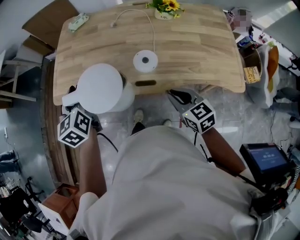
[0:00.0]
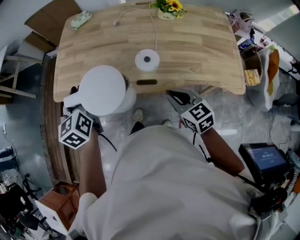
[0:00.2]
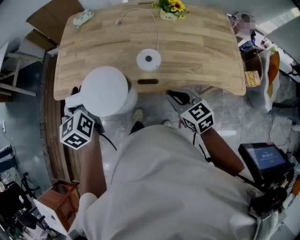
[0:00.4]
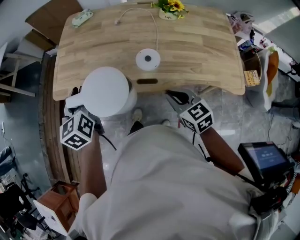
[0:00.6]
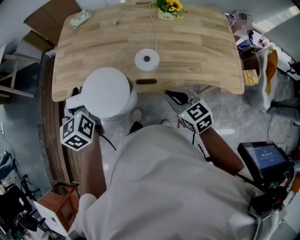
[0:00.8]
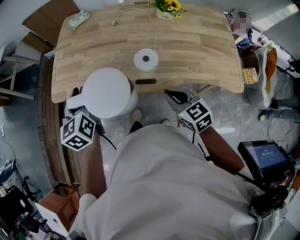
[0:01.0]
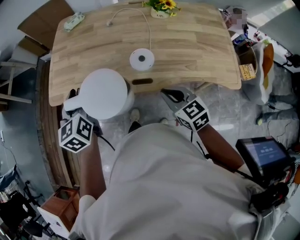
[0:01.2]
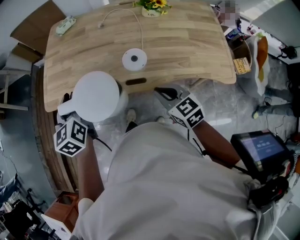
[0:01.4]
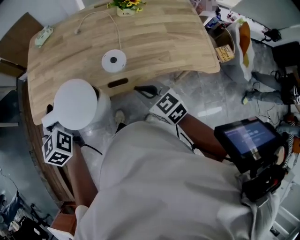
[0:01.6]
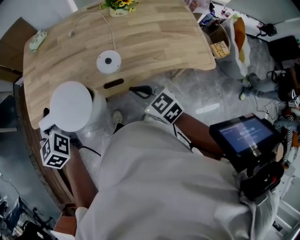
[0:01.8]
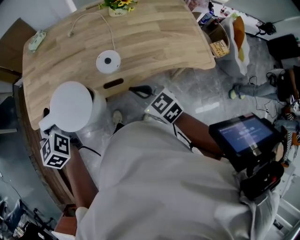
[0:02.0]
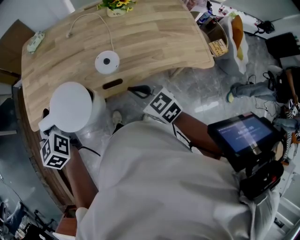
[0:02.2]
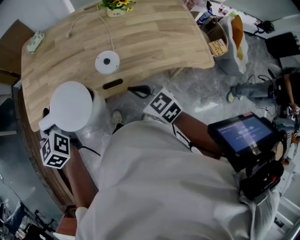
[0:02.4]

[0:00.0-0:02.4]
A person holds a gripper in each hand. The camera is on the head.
0.0 to 2.4 s: There are only small adjustments of the grippers.

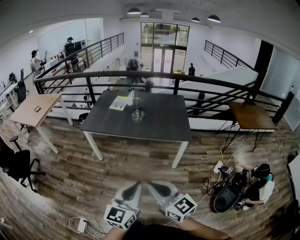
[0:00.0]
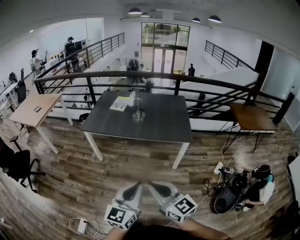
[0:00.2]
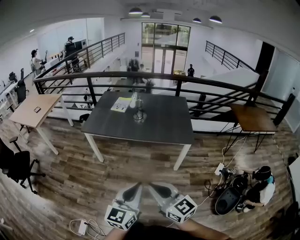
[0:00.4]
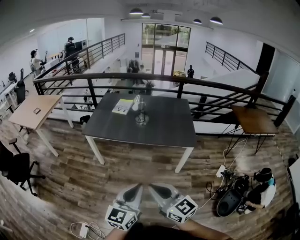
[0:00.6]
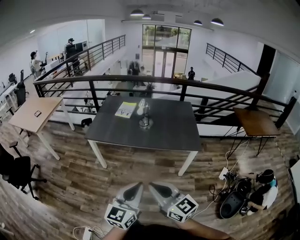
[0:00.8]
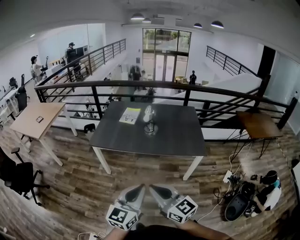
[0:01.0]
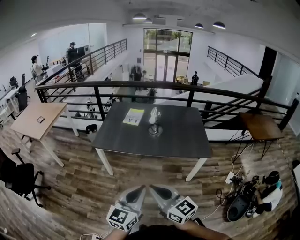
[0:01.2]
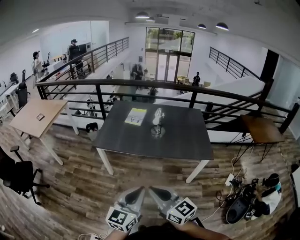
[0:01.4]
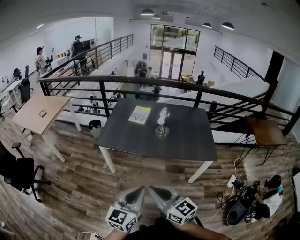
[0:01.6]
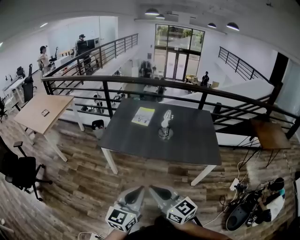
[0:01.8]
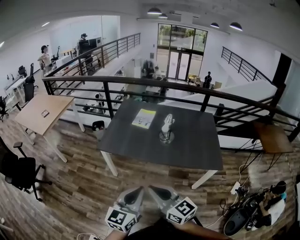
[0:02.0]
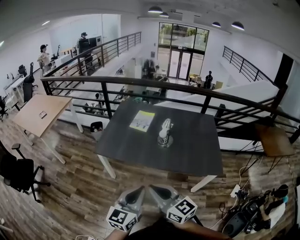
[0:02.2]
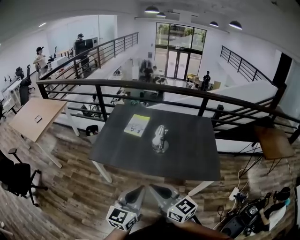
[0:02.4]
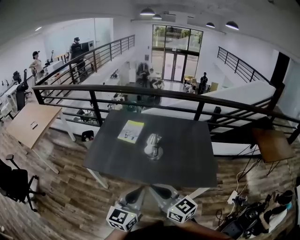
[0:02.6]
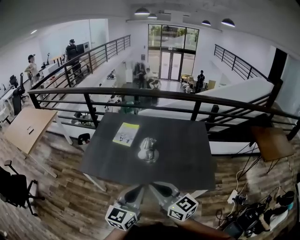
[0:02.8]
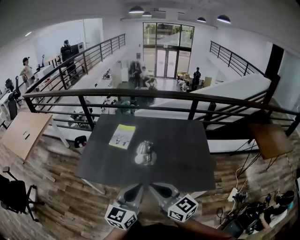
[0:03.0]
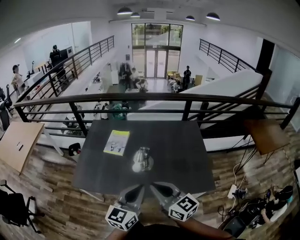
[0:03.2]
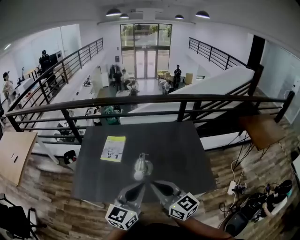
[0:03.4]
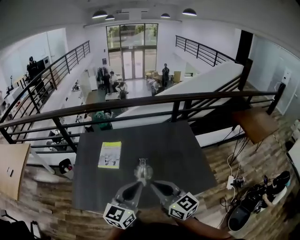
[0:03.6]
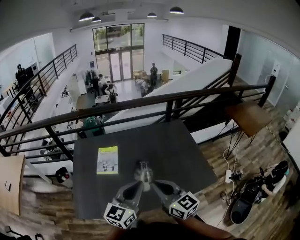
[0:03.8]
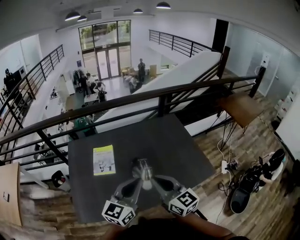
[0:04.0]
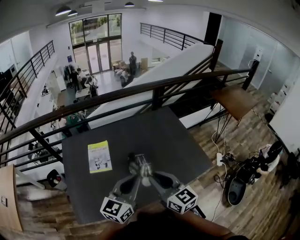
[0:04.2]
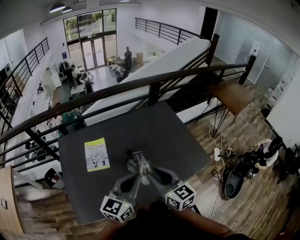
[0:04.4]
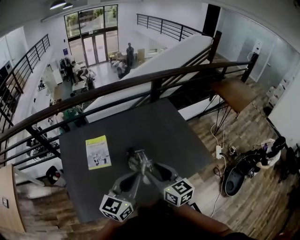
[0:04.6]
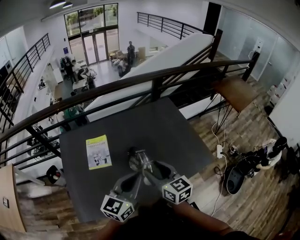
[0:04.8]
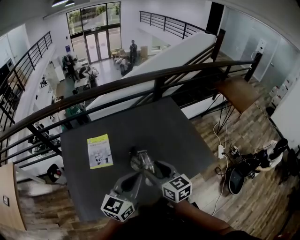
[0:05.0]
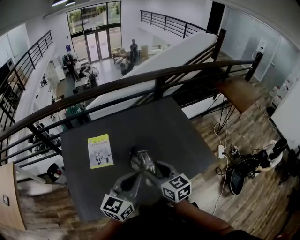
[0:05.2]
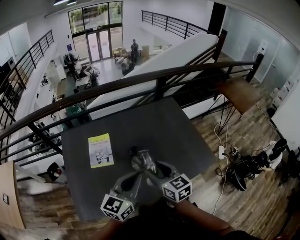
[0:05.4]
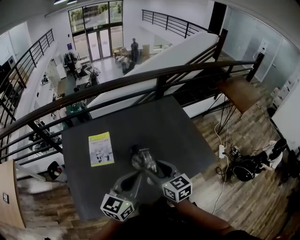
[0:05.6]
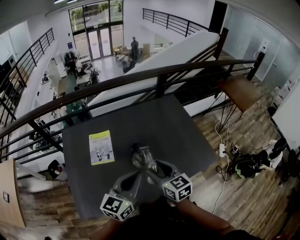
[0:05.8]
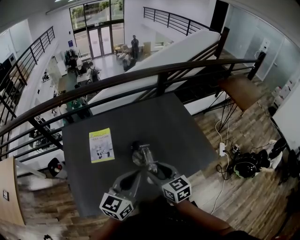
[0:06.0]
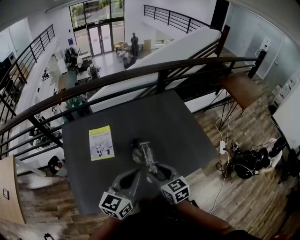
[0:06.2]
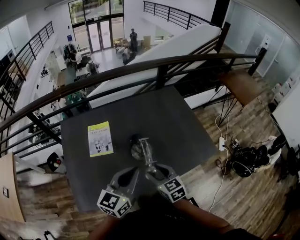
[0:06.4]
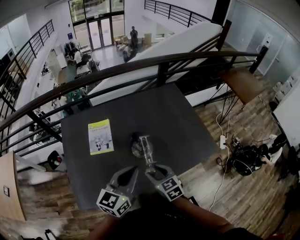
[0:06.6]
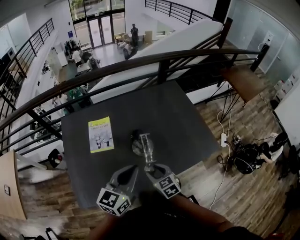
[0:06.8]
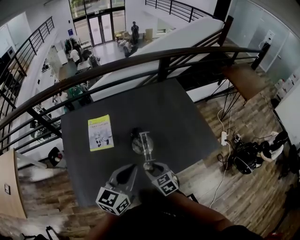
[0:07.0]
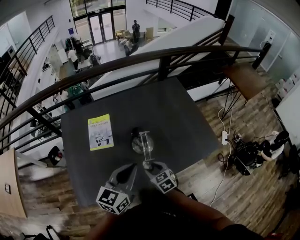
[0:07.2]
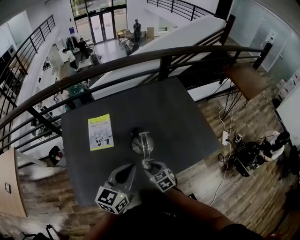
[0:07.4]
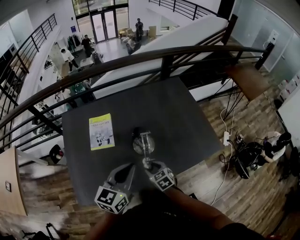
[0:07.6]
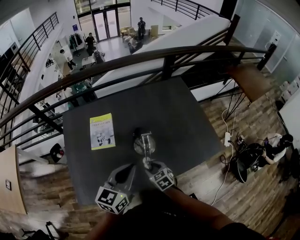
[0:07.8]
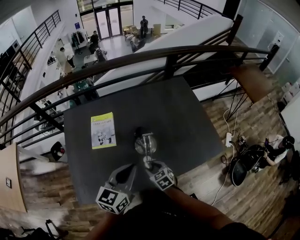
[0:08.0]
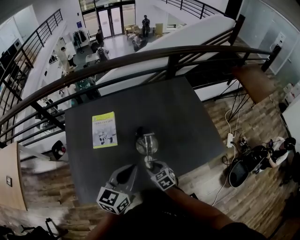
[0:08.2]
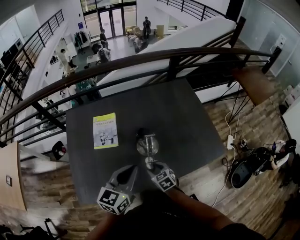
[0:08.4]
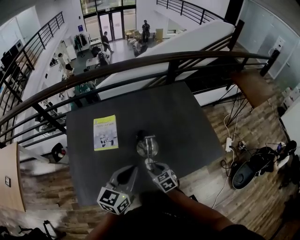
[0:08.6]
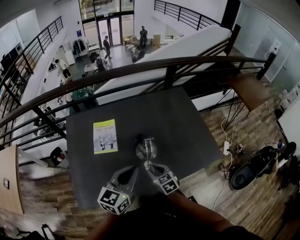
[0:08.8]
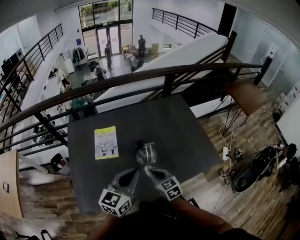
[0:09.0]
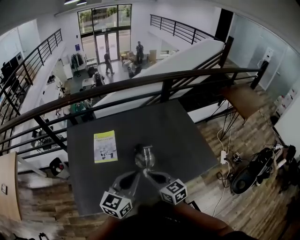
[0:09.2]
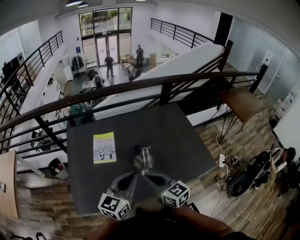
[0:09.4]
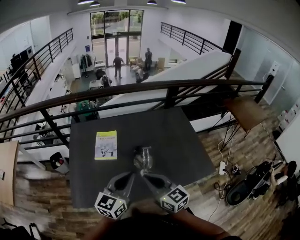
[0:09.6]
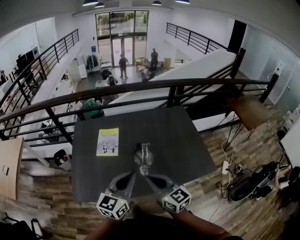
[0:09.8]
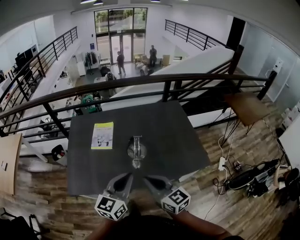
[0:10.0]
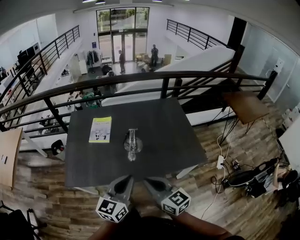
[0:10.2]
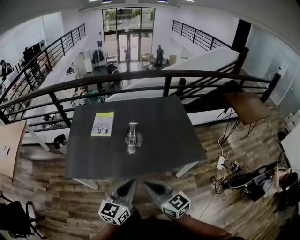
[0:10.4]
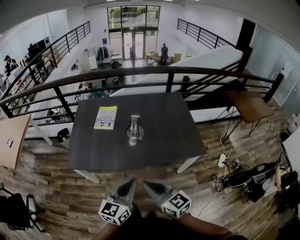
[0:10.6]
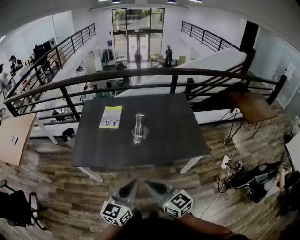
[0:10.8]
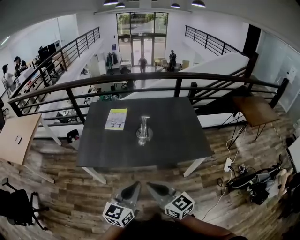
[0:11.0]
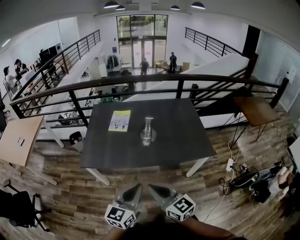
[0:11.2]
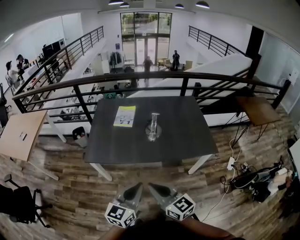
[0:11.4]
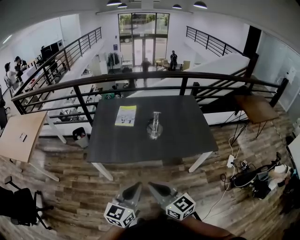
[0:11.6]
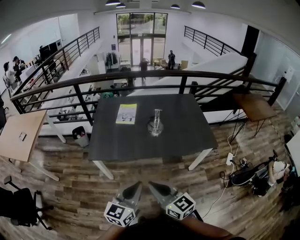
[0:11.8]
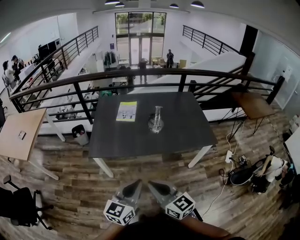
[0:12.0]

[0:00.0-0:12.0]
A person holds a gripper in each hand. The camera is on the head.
0.0 to 1.6 s: The two grippers go approximately 25 cm forward and to the left.
1.6 to 3.0 s: Both grippers move forward and to the right, approximately 35 cm.
3.0 to 4.4 s: The right gripper changes place by roughly 20 cm, swivels approximately 40 degrees, and opens. Meanwhile the left gripper changes place by some 20 cm, and swivels about 30 degrees.
4.4 to 6.0 s: The right gripper travels downward by roughly 10 cm, and opens.
6.0 to 7.6 s: The right gripper travels downward by approximately 20 cm, and changes its angle by about 20 degrees.
7.6 to 9.0 s: The right gripper shifts roughly 10 cm upward, and closes up.
9.0 to 10.4 s: The right gripper moves backward and upward, roughly 30 cm, and turns by roughly 30 degrees, while the left gripper goes about 25 cm backward and to the right.
10.4 to 12.0 s: The grippers both shift backward and to the left by some 20 cm.

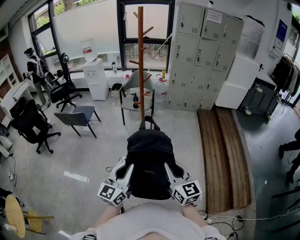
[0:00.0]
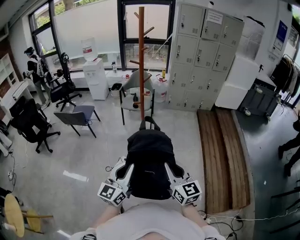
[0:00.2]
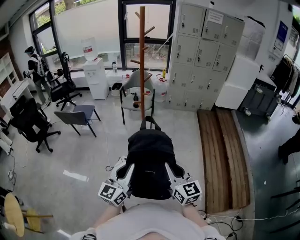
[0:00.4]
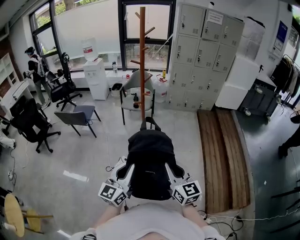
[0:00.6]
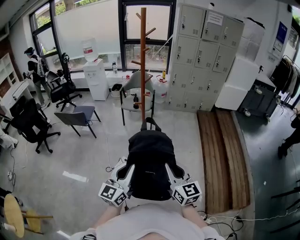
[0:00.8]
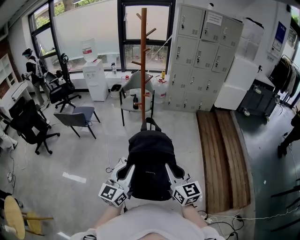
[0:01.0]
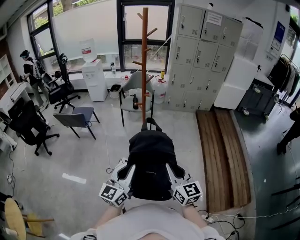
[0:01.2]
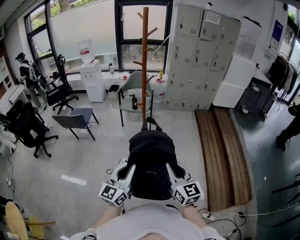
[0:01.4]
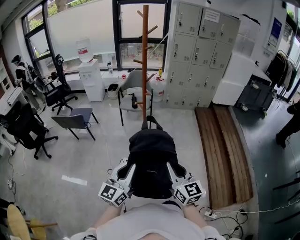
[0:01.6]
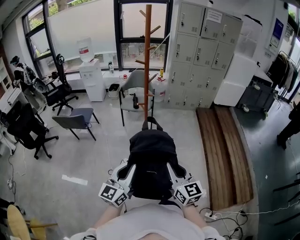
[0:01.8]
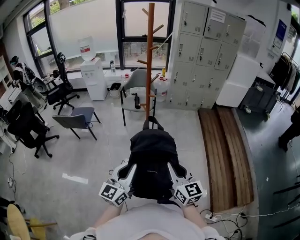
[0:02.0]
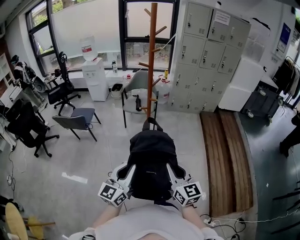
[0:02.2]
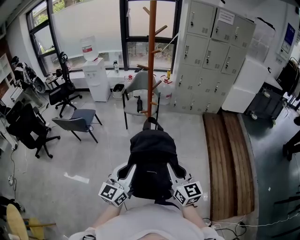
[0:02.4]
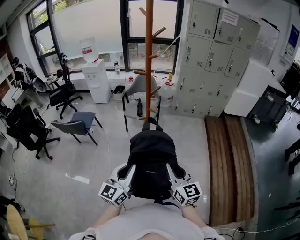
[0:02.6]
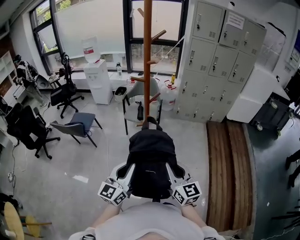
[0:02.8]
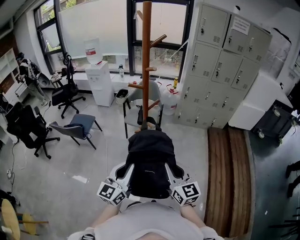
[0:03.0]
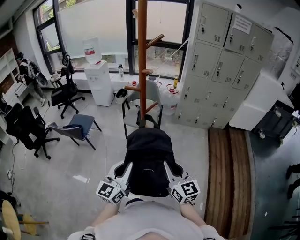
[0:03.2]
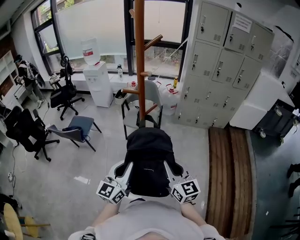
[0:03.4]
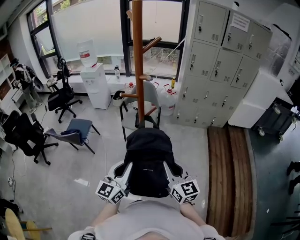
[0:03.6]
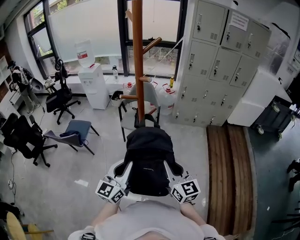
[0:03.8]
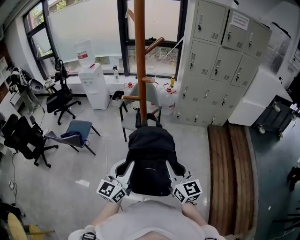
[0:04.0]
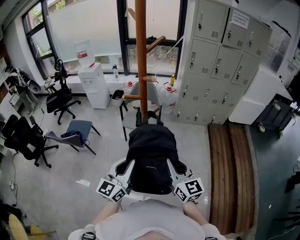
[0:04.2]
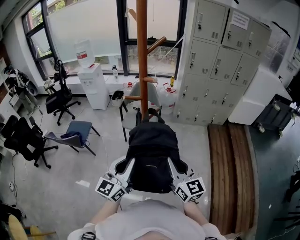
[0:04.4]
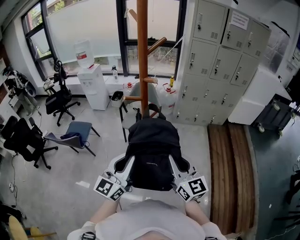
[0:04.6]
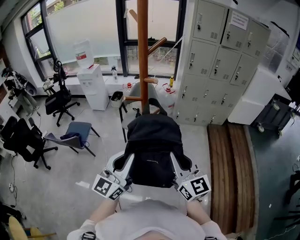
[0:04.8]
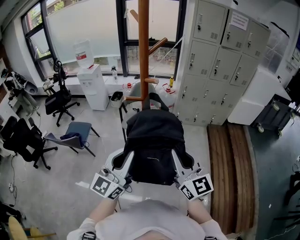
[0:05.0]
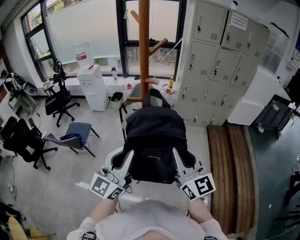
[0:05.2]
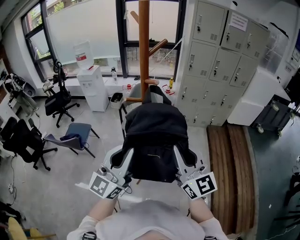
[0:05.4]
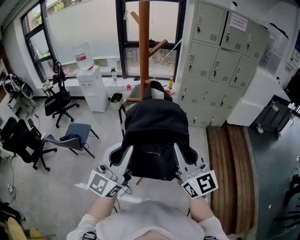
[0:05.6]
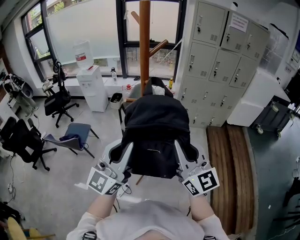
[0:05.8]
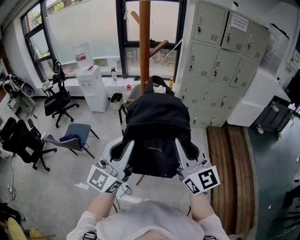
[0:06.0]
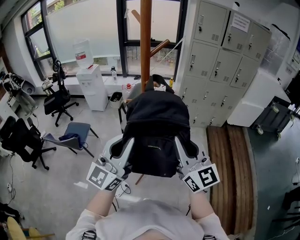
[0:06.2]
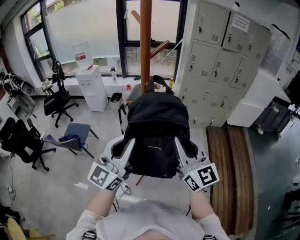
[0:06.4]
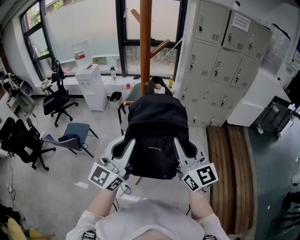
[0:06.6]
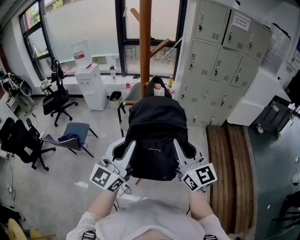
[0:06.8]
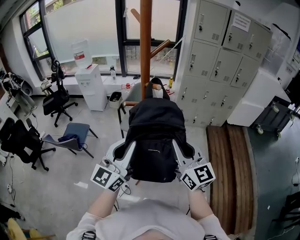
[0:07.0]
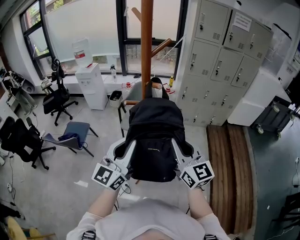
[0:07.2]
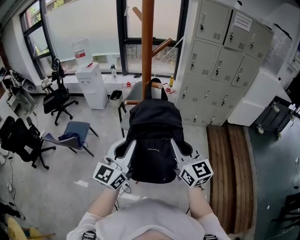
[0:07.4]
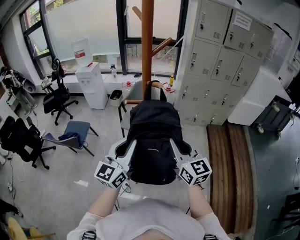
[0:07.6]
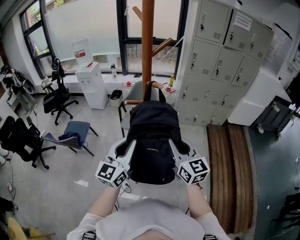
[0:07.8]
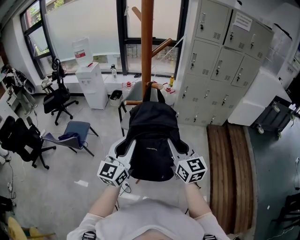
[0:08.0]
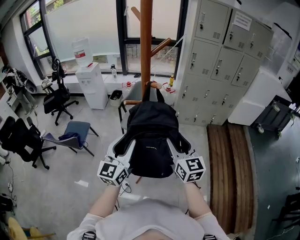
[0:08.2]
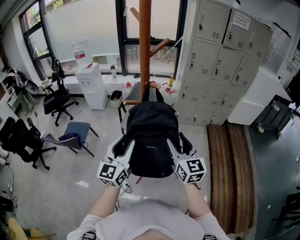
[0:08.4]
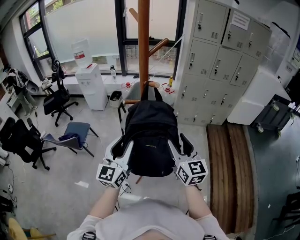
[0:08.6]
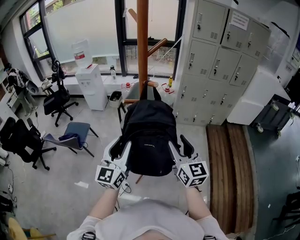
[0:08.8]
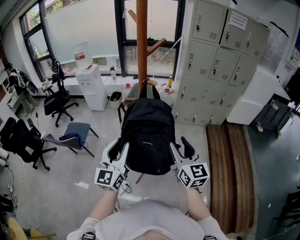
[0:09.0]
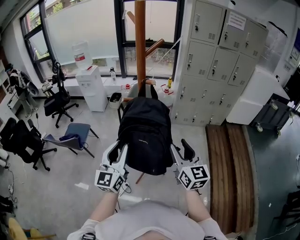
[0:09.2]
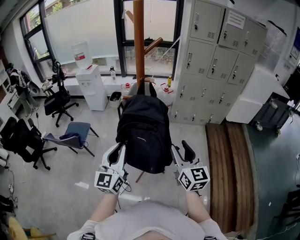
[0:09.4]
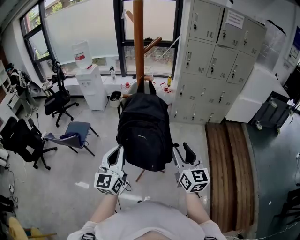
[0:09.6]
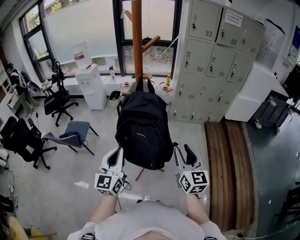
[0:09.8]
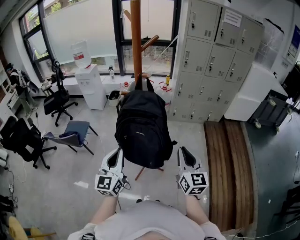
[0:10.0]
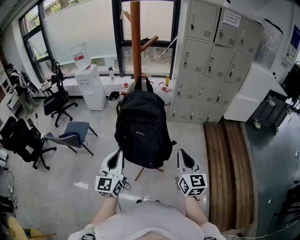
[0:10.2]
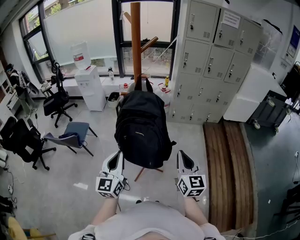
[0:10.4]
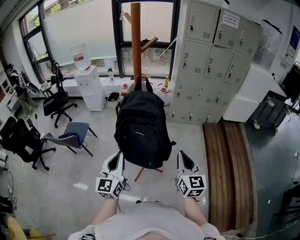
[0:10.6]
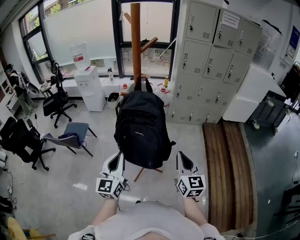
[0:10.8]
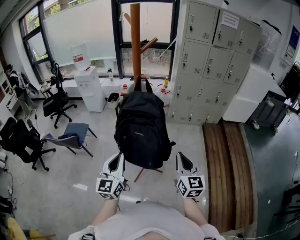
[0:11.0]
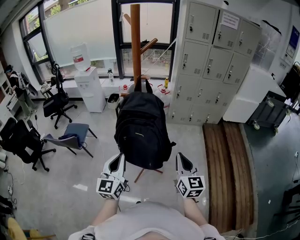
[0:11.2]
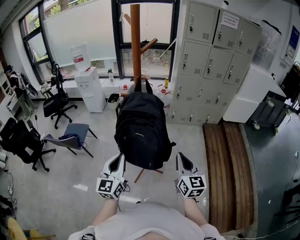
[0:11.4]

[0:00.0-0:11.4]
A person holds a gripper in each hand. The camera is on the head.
0.0 to 1.4 s: The grippers make only small movements.
1.4 to 2.8 s: Both grippers move forward, about 25 cm.
2.8 to 4.2 s: The grippers both shift forward by roughly 15 cm.
4.2 to 5.6 s: The two grippers go roughly 15 cm upward.
5.6 to 7.2 s: The left gripper shifts roughly 5 cm forward. The right gripper travels forward and downward by roughly 10 cm.
7.2 to 8.6 s: The left gripper ends up some 5 cm from where it was, and opens up, while the right gripper opens.
8.6 to 10.0 s: The right gripper travels backward and to the right by about 10 cm, and closes; the left gripper travels backward by roughly 10 cm, and closes its fingers.
10.0 to 11.4 s: The grippers stay close to where they were, moving slightly.
